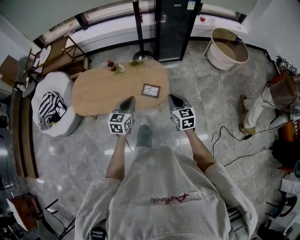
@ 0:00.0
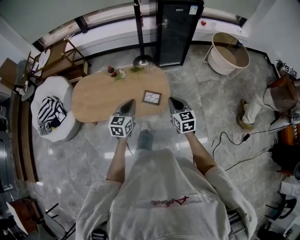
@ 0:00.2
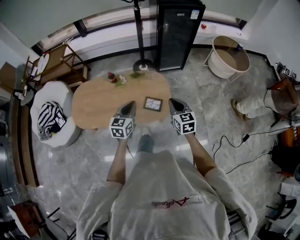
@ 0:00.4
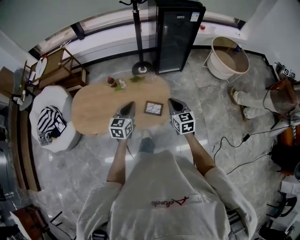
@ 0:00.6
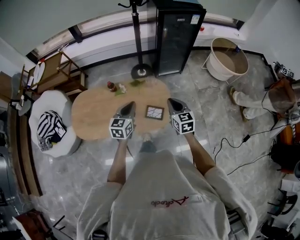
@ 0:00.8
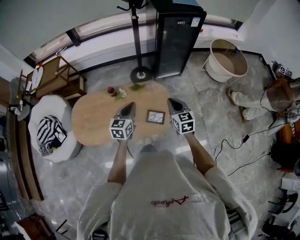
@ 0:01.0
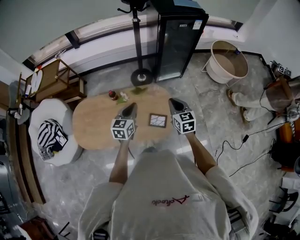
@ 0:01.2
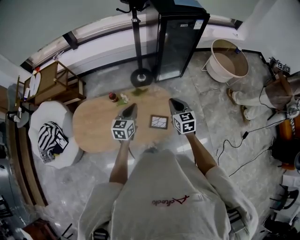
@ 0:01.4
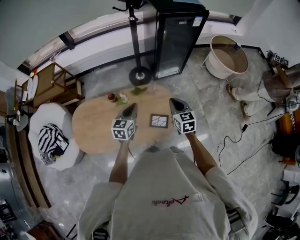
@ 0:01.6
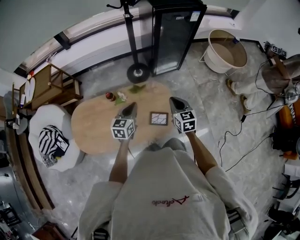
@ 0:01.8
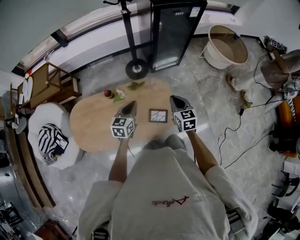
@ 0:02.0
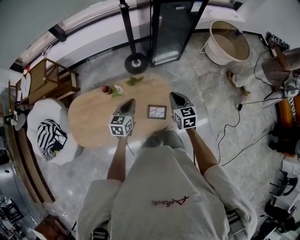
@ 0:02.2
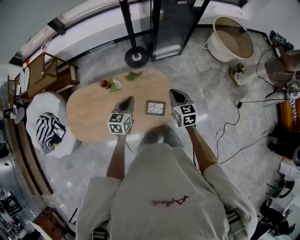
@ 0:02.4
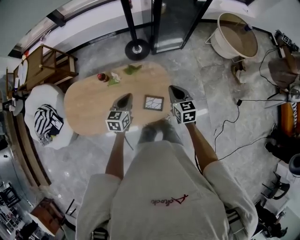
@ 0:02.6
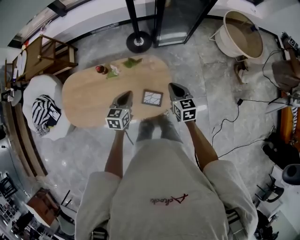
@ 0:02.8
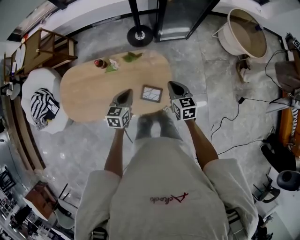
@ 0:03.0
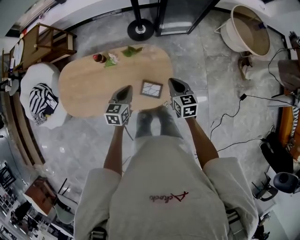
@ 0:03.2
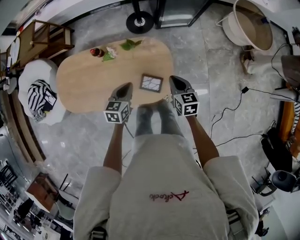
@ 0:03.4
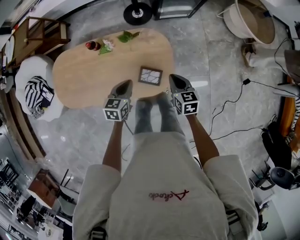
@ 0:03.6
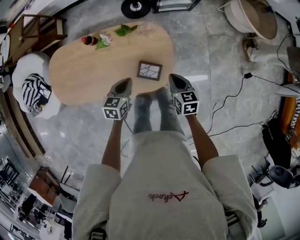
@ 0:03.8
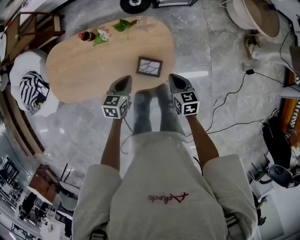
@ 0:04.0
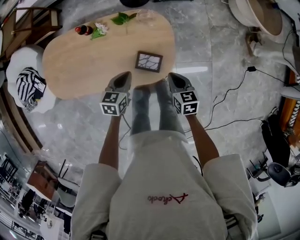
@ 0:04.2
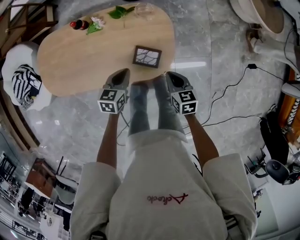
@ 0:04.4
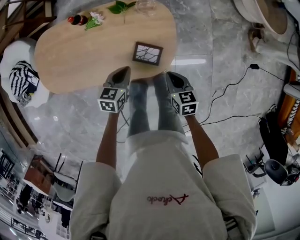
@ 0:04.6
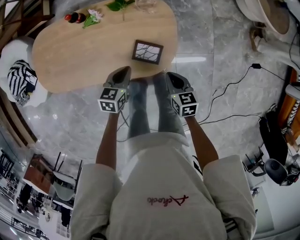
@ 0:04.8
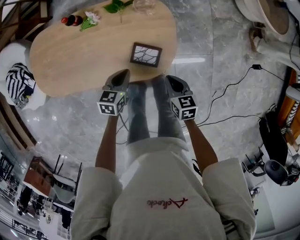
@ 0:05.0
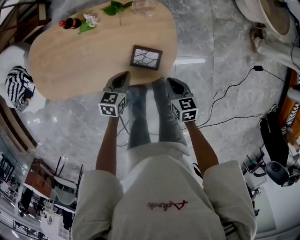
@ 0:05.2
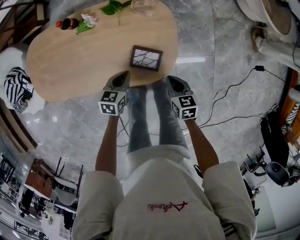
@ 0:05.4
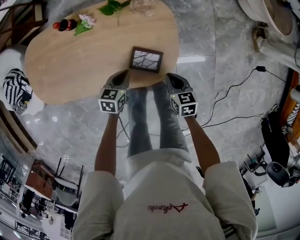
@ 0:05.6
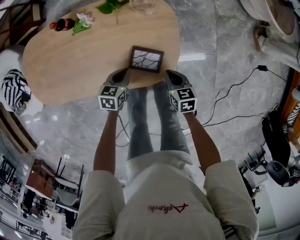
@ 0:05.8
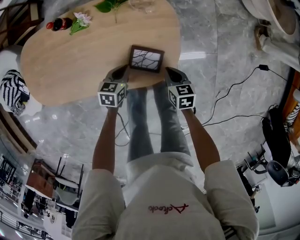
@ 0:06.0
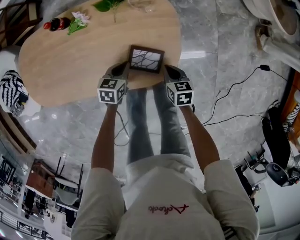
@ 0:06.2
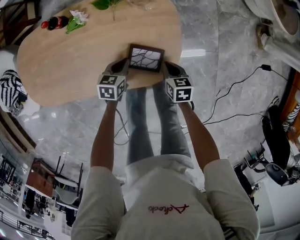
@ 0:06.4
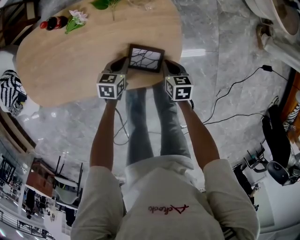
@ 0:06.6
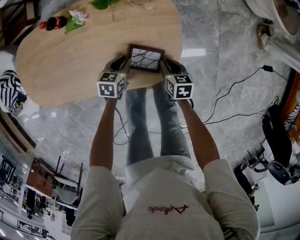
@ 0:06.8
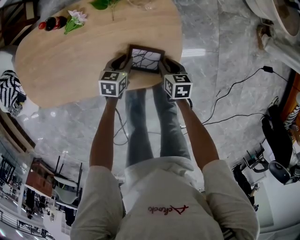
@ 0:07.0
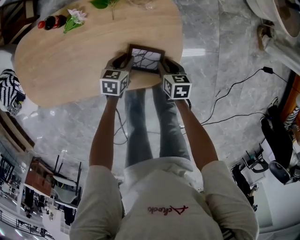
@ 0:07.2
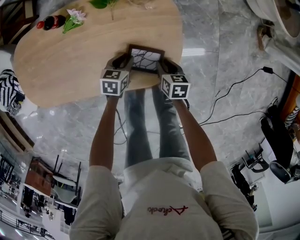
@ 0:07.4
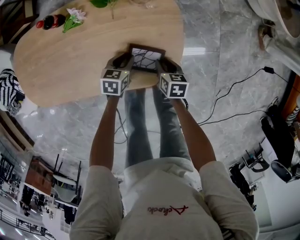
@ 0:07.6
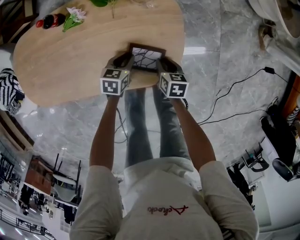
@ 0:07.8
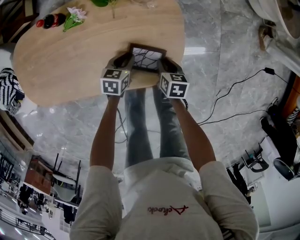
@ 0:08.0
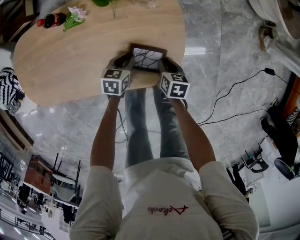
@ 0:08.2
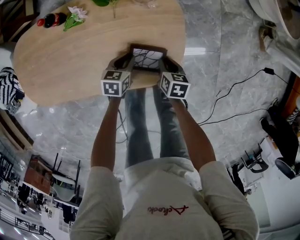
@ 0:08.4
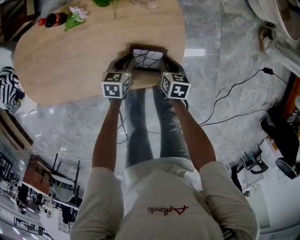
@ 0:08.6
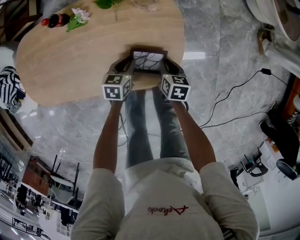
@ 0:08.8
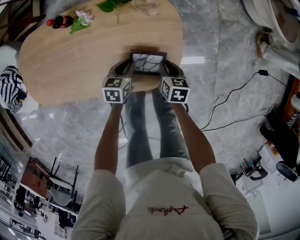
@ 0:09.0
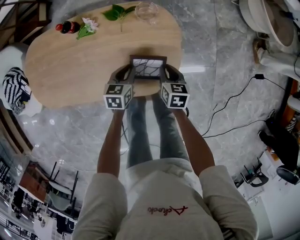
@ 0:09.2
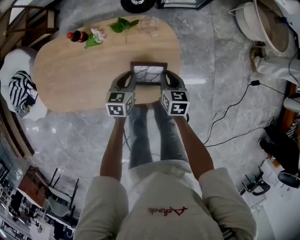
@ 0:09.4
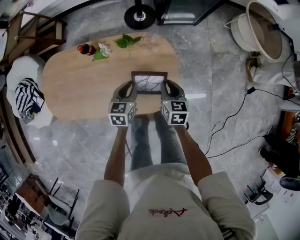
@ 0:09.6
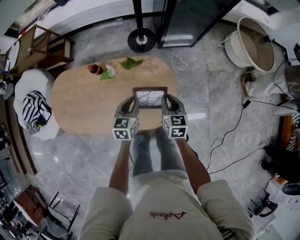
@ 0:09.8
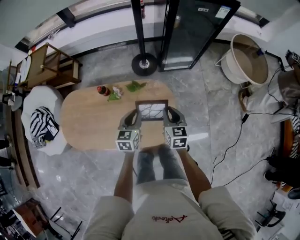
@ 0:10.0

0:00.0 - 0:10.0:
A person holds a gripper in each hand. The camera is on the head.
0:00.0 - 0:01.4: Both grippers move forward, about 30 cm.
0:01.4 - 0:02.8: The left gripper is displaced downward and to the right by some 10 cm. The right gripper goes some 15 cm downward, to the right and forward.
0:02.8 - 0:04.2: The two grippers go roughly 15 cm downward and backward.
0:04.2 - 0:05.8: The grippers both shift downward by some 20 cm.
0:05.8 - 0:07.2: Both grippers move downward, some 10 cm. The left gripper opens. The right gripper opens up.
0:07.2 - 0:08.6: The grippers stay close to where they were, moving slightly.
0:08.6 - 0:10.0: The two grippers go some 35 cm upward. The left gripper turns by about 30 degrees. The right gripper swivels approximately 30 degrees.

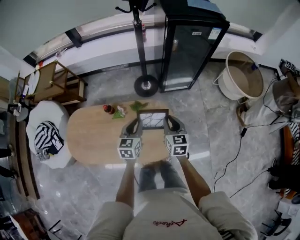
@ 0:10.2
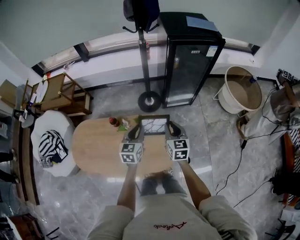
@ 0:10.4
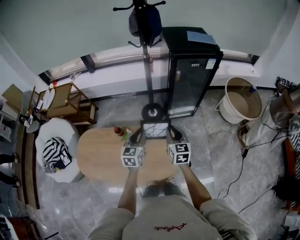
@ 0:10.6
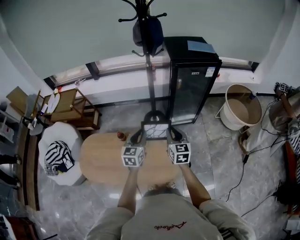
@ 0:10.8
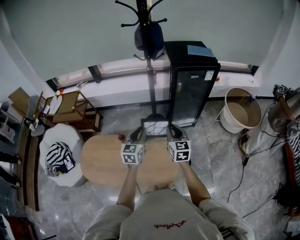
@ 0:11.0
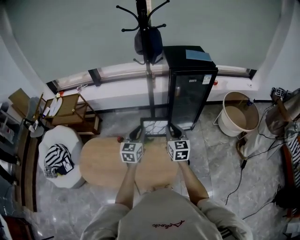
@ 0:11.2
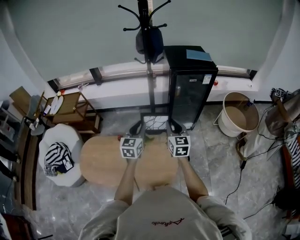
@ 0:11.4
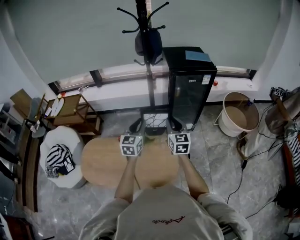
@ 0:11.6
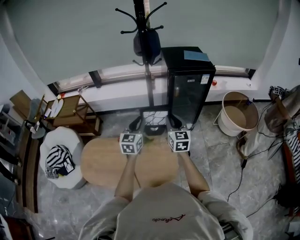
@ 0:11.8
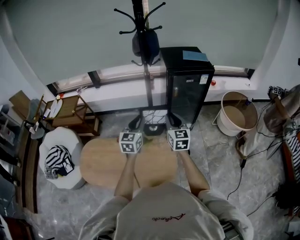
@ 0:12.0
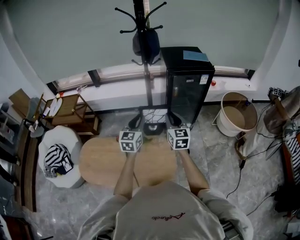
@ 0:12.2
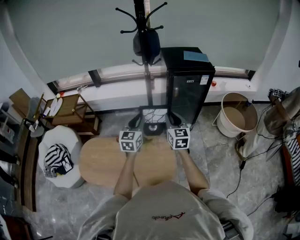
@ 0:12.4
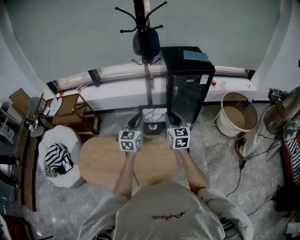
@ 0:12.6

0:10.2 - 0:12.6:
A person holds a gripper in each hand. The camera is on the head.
0:10.2 - 0:11.4: The two grippers go approximately 25 cm upward.
0:11.4 - 0:12.6: The grippers make only small movements.

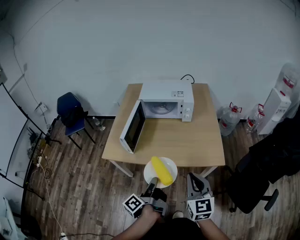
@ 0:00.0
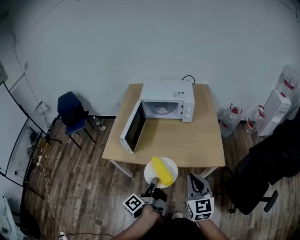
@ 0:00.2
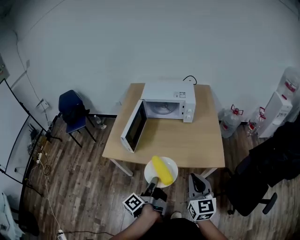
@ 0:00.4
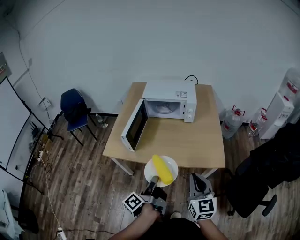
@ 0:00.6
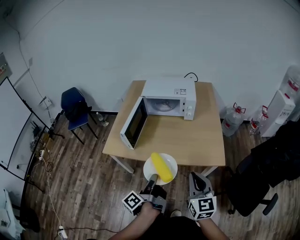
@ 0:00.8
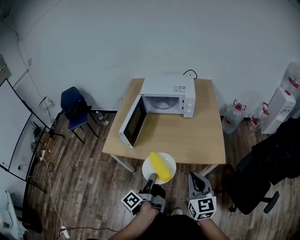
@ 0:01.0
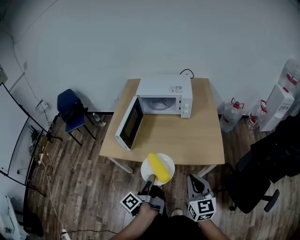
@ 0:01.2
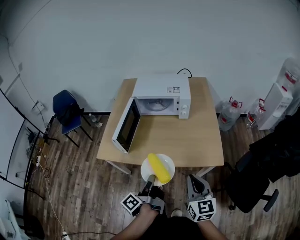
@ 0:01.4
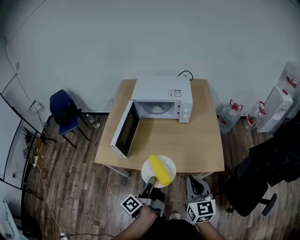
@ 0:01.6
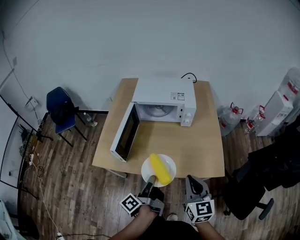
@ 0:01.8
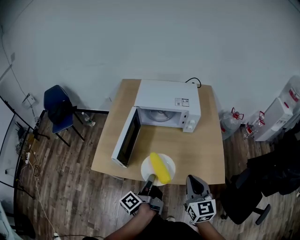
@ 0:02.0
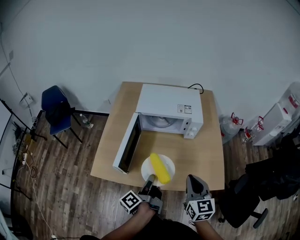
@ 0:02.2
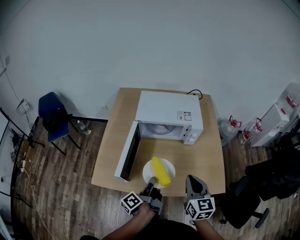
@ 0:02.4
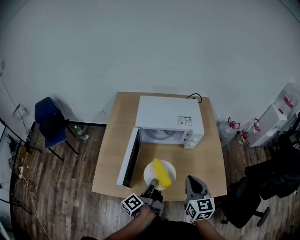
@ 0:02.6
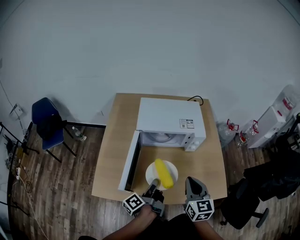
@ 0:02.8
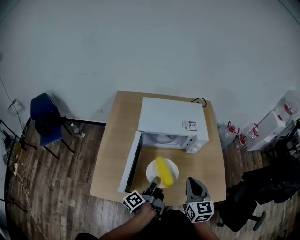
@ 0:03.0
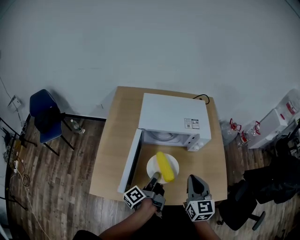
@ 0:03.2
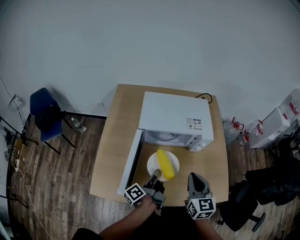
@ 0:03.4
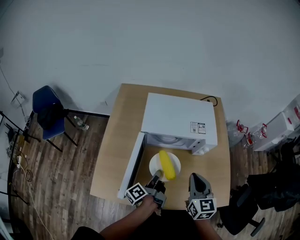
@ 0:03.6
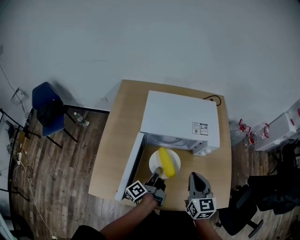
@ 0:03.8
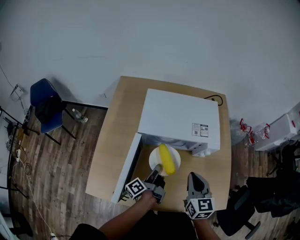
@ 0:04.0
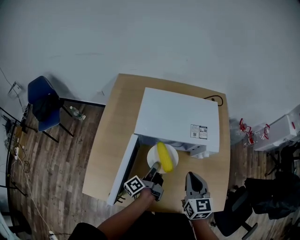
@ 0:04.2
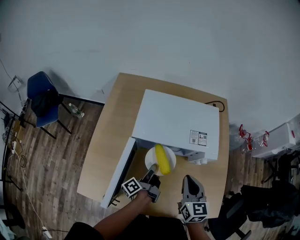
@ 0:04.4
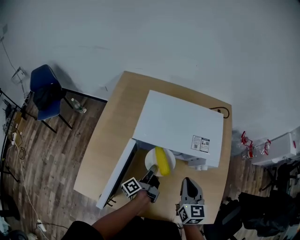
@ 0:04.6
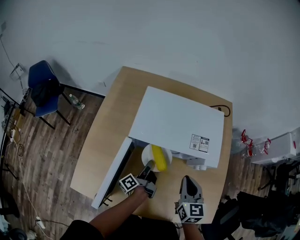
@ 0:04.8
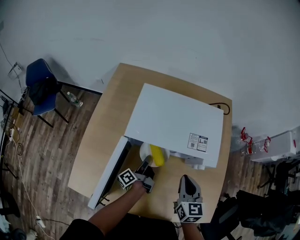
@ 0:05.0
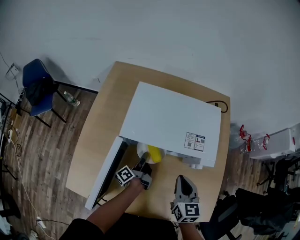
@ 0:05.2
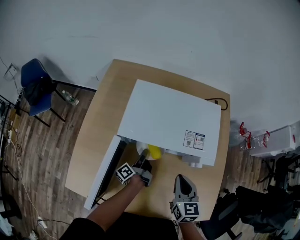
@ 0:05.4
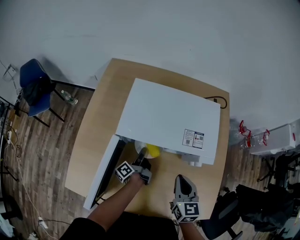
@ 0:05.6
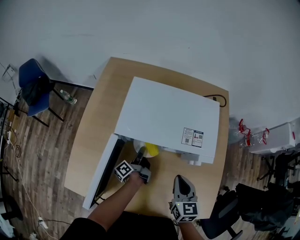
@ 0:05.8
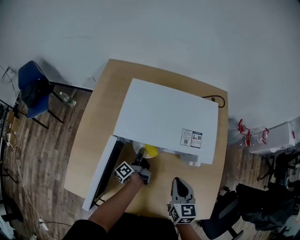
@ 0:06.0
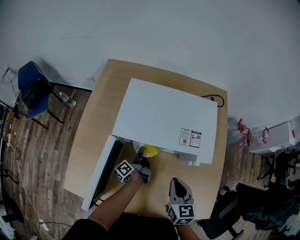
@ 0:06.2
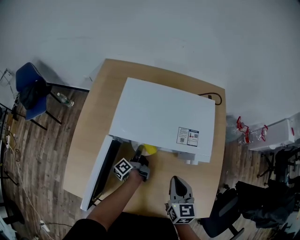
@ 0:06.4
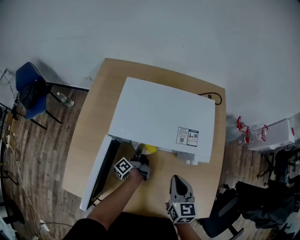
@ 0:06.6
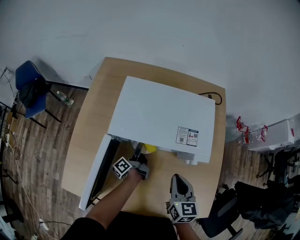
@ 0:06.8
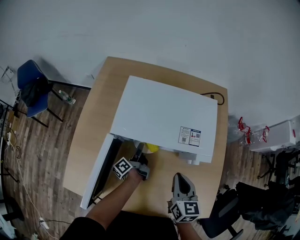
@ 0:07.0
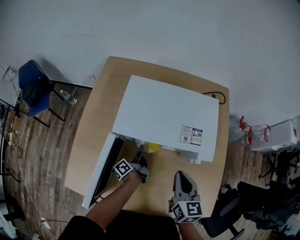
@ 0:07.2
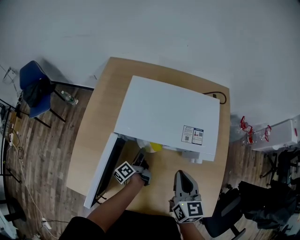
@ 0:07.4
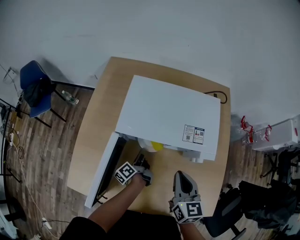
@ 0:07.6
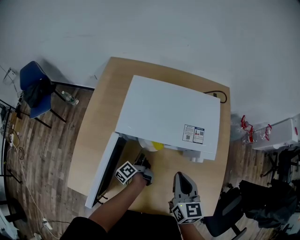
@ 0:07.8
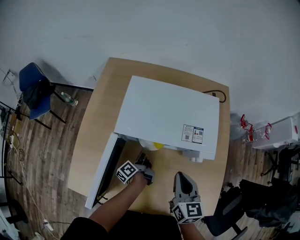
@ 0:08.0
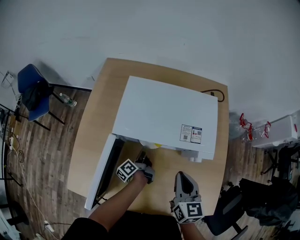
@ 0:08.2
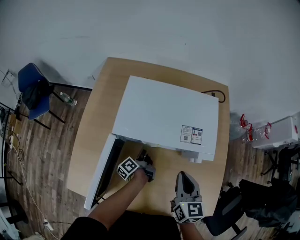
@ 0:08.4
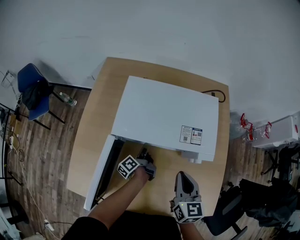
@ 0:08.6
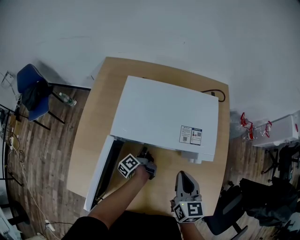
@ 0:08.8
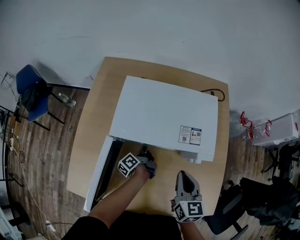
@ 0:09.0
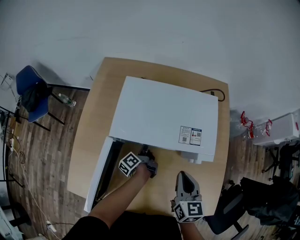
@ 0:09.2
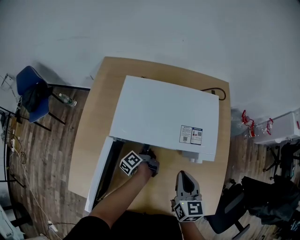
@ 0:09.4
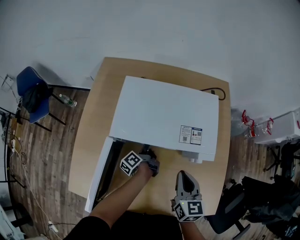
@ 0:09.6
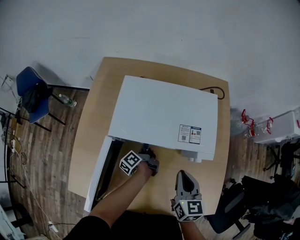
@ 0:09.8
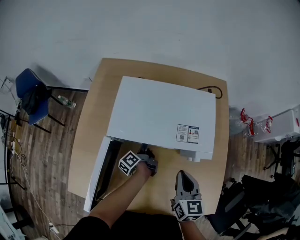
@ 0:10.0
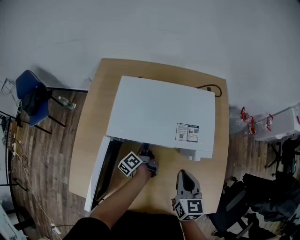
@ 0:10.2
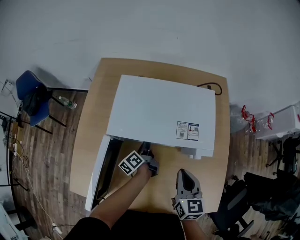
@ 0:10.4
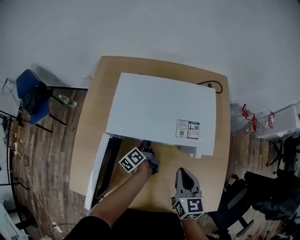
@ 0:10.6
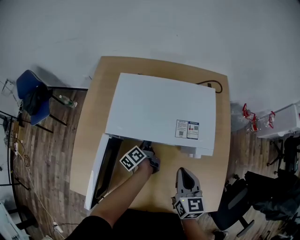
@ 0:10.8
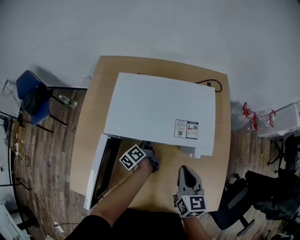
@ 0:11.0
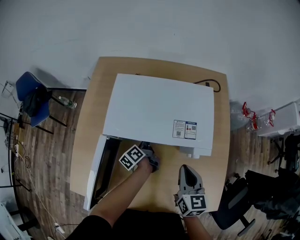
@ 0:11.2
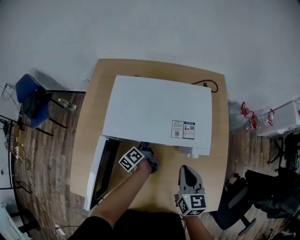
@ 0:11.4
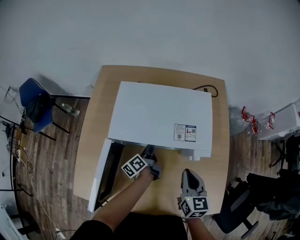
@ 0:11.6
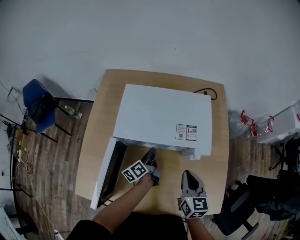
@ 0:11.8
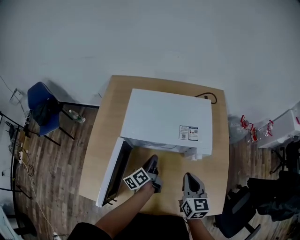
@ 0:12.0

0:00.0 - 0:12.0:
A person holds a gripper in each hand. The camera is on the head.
0:00.0 - 0:01.6: The right gripper ends up about 5 cm from where it was.
0:01.6 - 0:03.0: The right gripper changes place by approximately 25 cm.
0:03.0 - 0:04.4: The right gripper changes place by approximately 15 cm.
0:04.4 - 0:06.0: The right gripper heads downward, covering about 5 cm.
0:06.0 - 0:07.6: The right gripper heads upward, covering roughly 5 cm.
